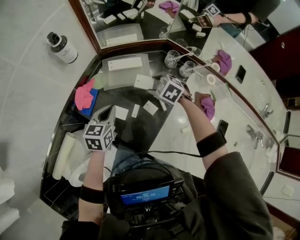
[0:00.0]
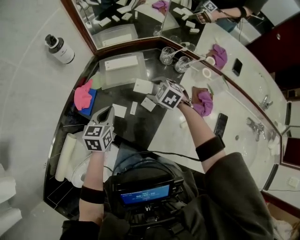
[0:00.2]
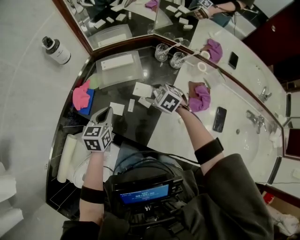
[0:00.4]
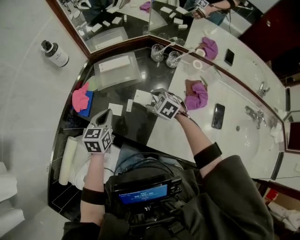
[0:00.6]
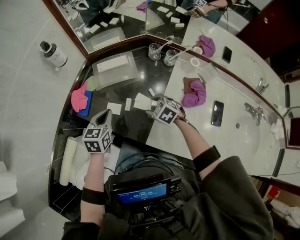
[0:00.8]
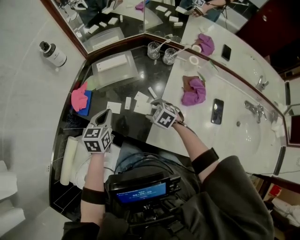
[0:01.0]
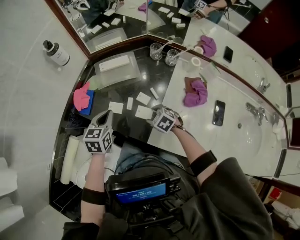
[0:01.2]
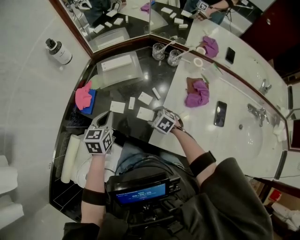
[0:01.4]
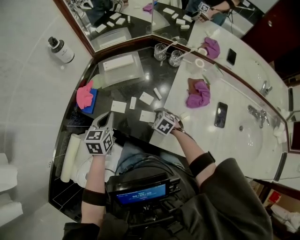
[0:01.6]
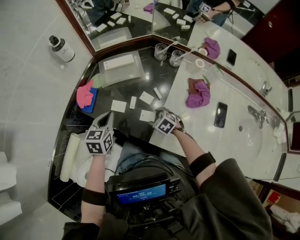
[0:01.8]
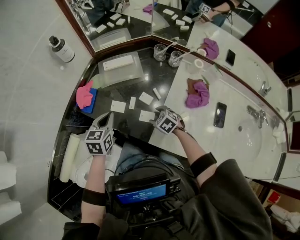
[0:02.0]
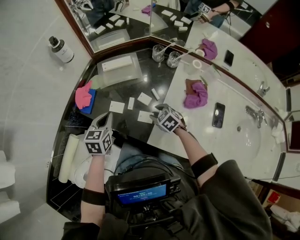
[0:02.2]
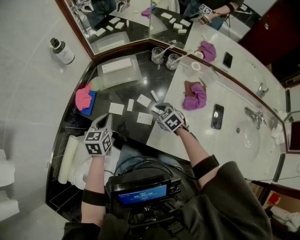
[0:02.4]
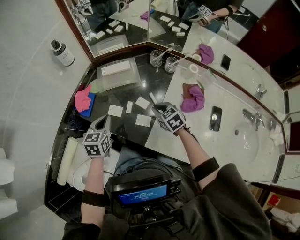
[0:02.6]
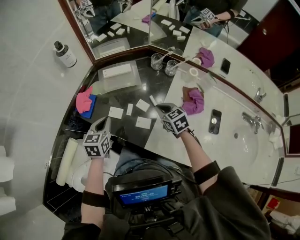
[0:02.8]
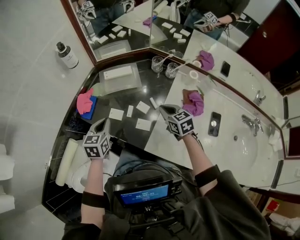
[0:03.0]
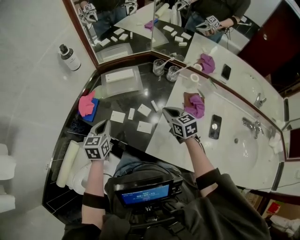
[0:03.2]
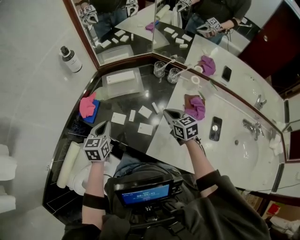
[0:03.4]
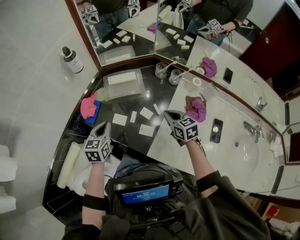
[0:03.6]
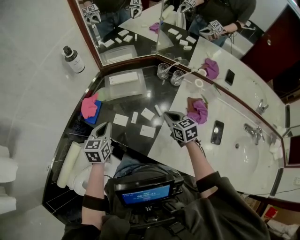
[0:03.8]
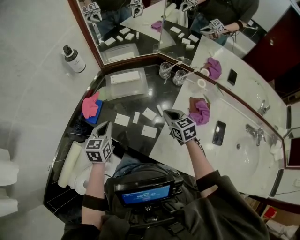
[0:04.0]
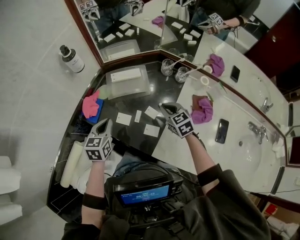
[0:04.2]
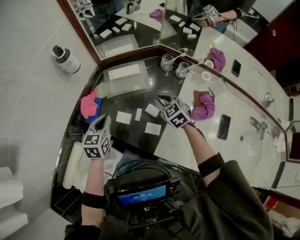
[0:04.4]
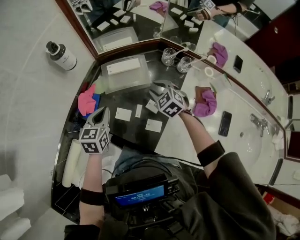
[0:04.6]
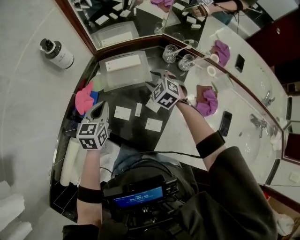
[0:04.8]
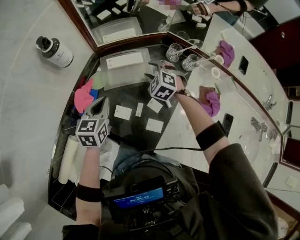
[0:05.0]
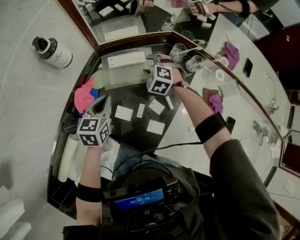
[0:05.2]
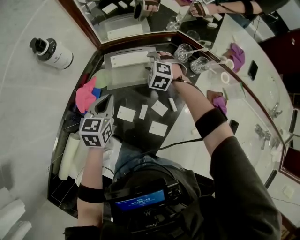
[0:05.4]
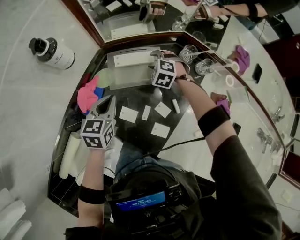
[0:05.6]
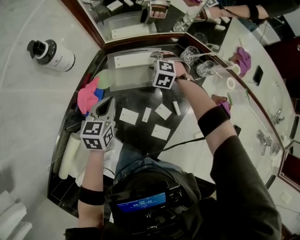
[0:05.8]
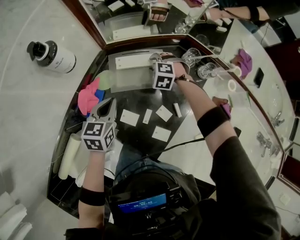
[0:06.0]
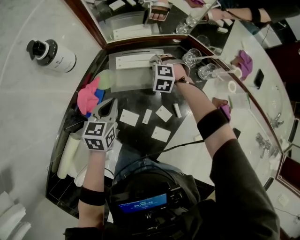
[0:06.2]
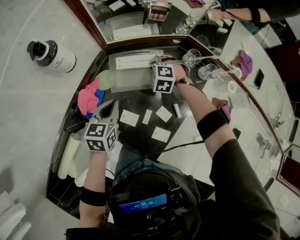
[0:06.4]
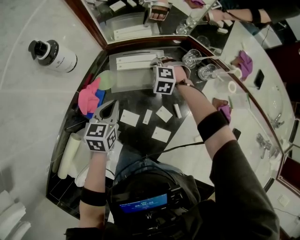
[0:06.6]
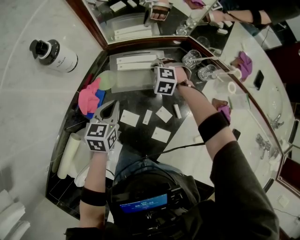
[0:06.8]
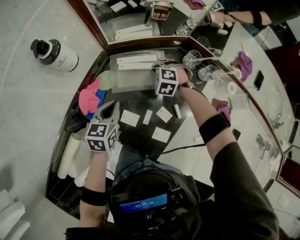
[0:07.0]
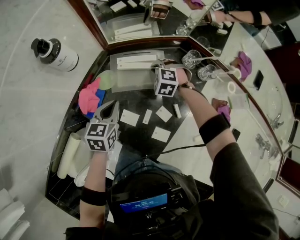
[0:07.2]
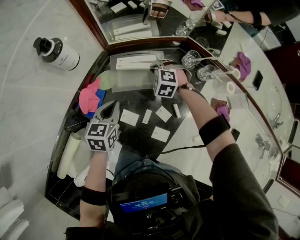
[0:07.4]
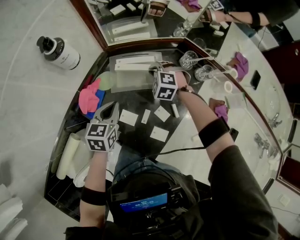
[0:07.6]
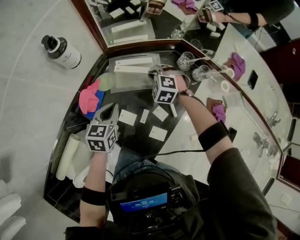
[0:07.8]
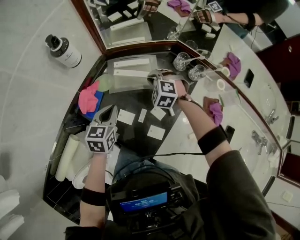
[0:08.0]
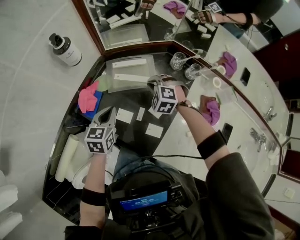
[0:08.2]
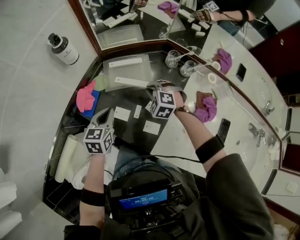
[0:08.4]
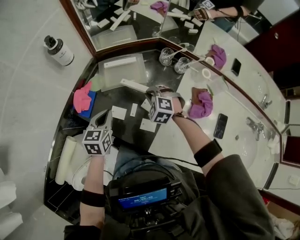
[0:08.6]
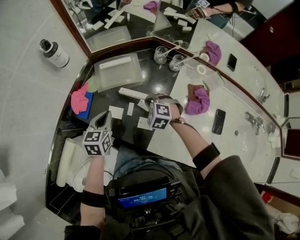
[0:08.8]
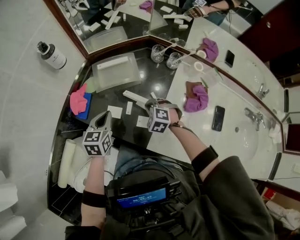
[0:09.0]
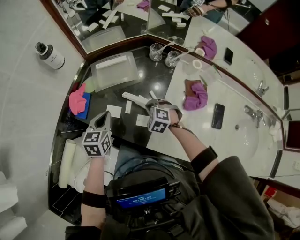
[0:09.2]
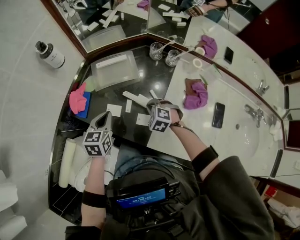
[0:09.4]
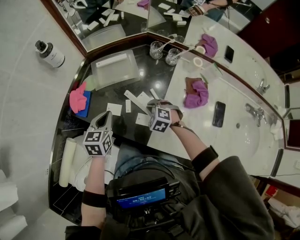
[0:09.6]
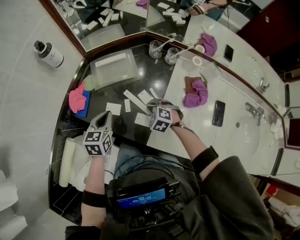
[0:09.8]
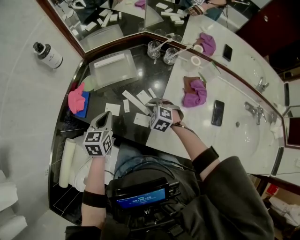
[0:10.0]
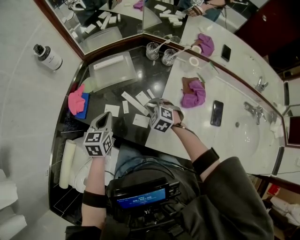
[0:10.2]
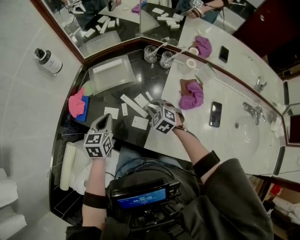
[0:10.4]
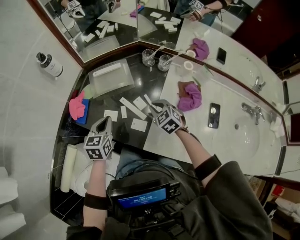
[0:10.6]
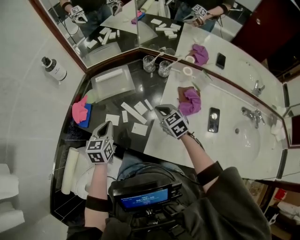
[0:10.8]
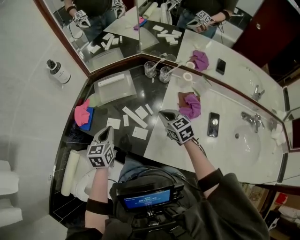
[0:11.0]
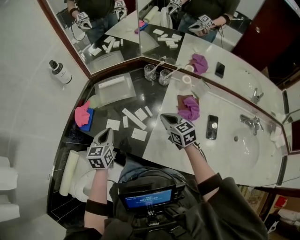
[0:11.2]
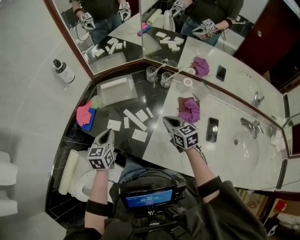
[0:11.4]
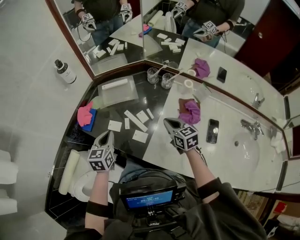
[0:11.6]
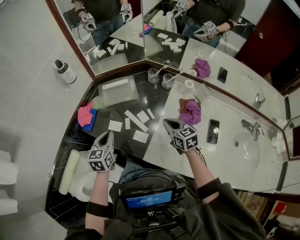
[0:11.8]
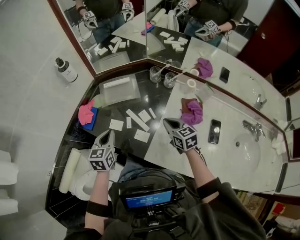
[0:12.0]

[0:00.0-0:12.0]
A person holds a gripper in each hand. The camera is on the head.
0:00.0 to 0:01.6: The left gripper shifts about 10 cm backward, while the right gripper is displaced backward and downward by about 25 cm.
0:01.6 to 0:03.0: The right gripper is displaced upward and to the right by approximately 20 cm, changes its angle by approximately 40 degrees, and closes its fingers.
0:03.0 to 0:04.4: The left gripper moves forward, approximately 5 cm. The right gripper shifts roughly 10 cm forward and to the left, and swivels about 20 degrees.
0:04.4 to 0:06.0: The right gripper is displaced forward and downward by roughly 25 cm, and twists some 40 degrees counterclockwise, seen from behind, while the left gripper shifts approximately 10 cm forward and downward.
0:06.0 to 0:07.6: The right gripper shifts by about 5 cm.
0:07.6 to 0:09.0: The left gripper moves backward, approximately 10 cm; the right gripper travels backward by some 25 cm.
0:09.0 to 0:10.4: The right gripper swivels approximately 20 degrees.
0:10.4 to 0:12.0: The right gripper travels upward and to the right by about 10 cm, and swivels some 40 degrees.

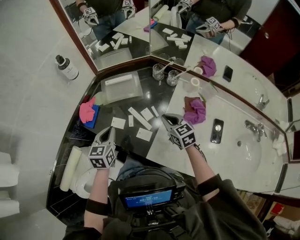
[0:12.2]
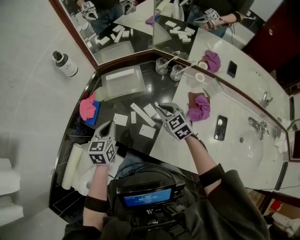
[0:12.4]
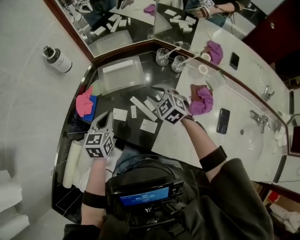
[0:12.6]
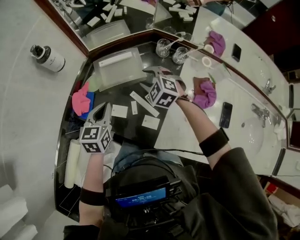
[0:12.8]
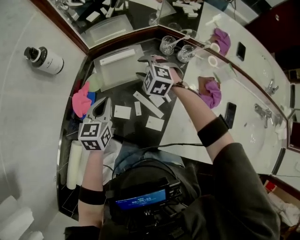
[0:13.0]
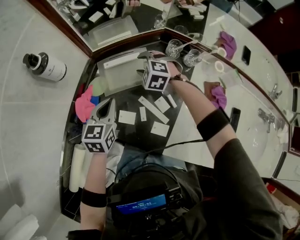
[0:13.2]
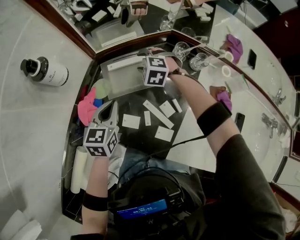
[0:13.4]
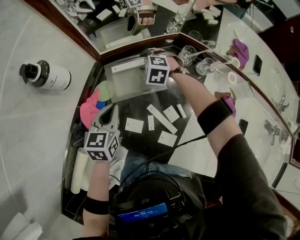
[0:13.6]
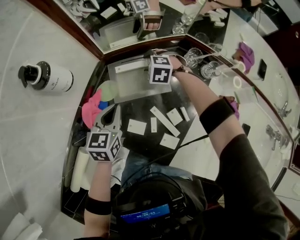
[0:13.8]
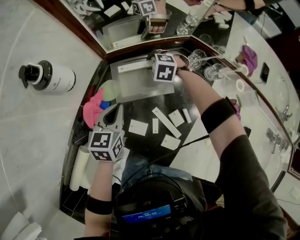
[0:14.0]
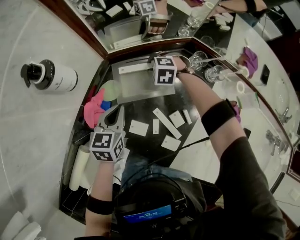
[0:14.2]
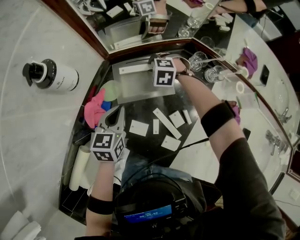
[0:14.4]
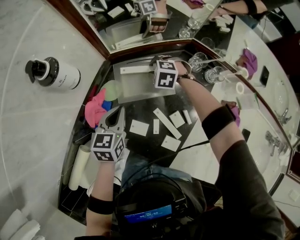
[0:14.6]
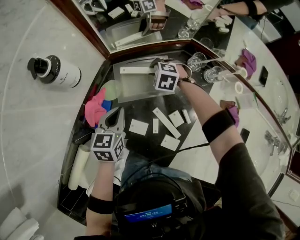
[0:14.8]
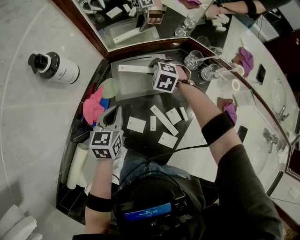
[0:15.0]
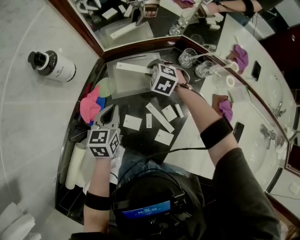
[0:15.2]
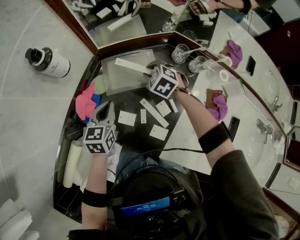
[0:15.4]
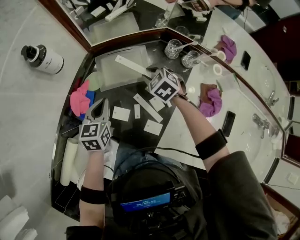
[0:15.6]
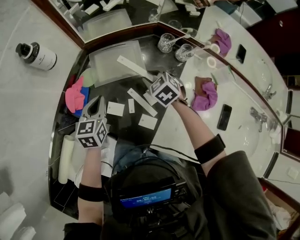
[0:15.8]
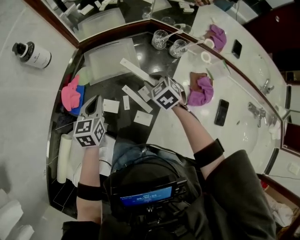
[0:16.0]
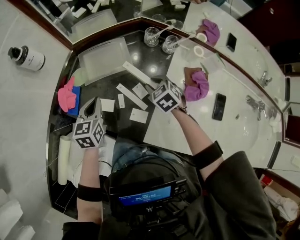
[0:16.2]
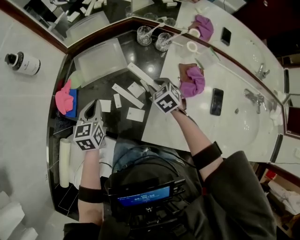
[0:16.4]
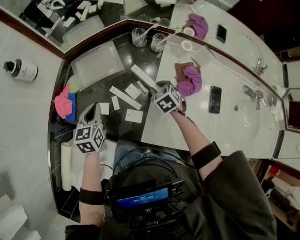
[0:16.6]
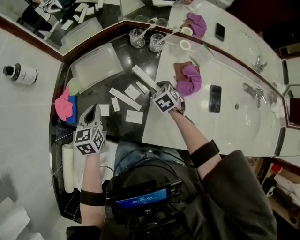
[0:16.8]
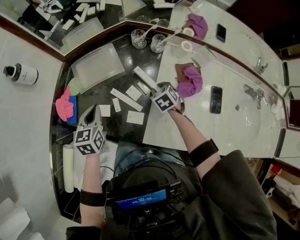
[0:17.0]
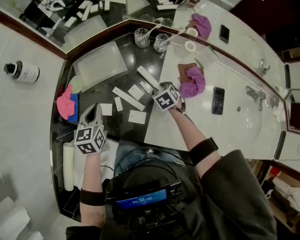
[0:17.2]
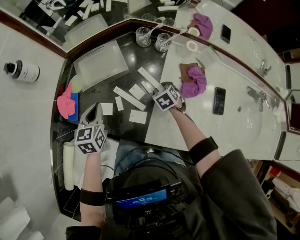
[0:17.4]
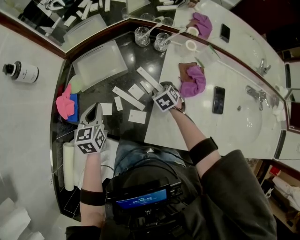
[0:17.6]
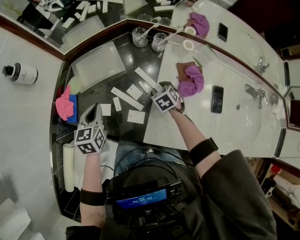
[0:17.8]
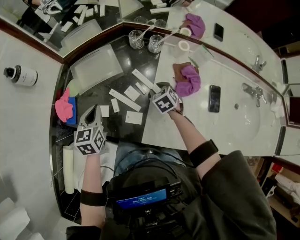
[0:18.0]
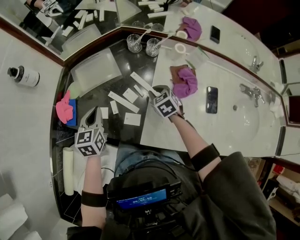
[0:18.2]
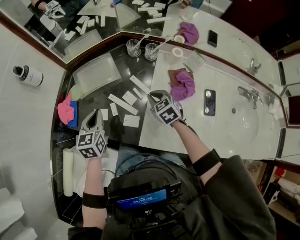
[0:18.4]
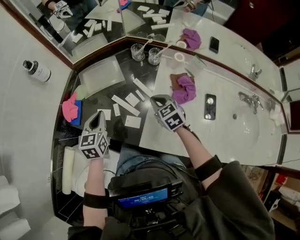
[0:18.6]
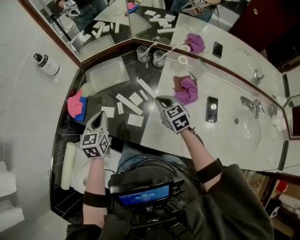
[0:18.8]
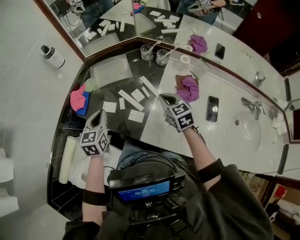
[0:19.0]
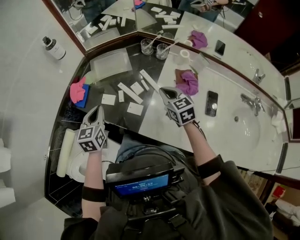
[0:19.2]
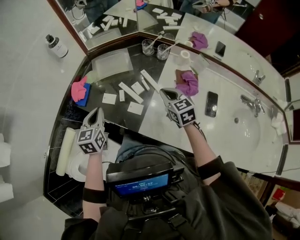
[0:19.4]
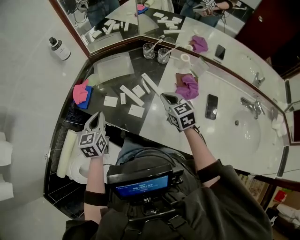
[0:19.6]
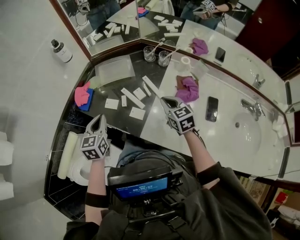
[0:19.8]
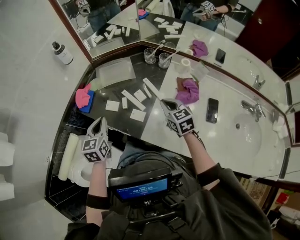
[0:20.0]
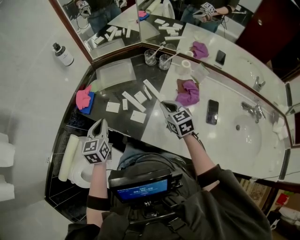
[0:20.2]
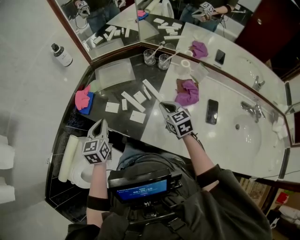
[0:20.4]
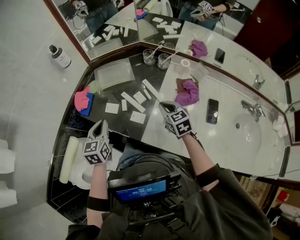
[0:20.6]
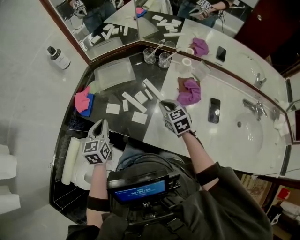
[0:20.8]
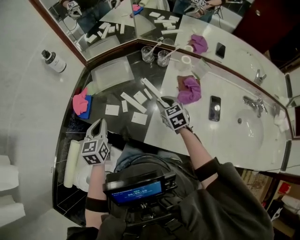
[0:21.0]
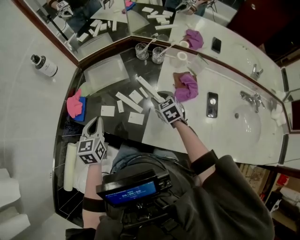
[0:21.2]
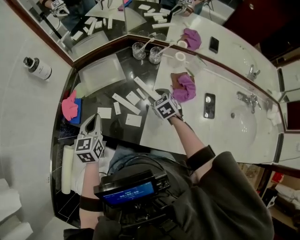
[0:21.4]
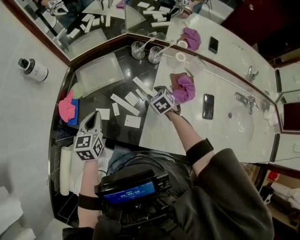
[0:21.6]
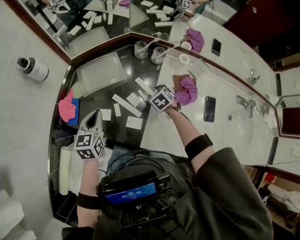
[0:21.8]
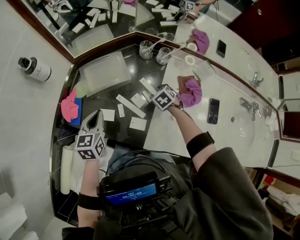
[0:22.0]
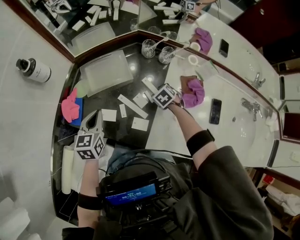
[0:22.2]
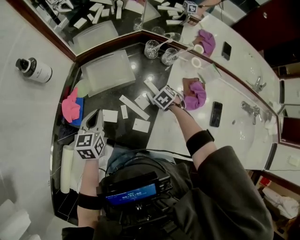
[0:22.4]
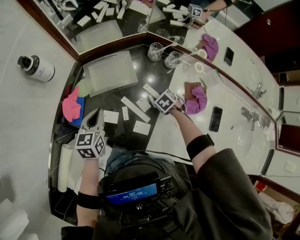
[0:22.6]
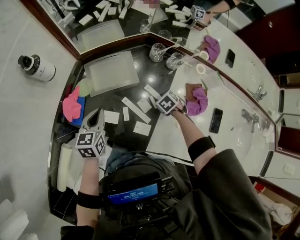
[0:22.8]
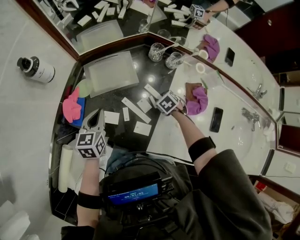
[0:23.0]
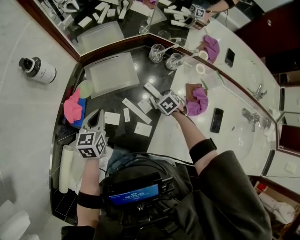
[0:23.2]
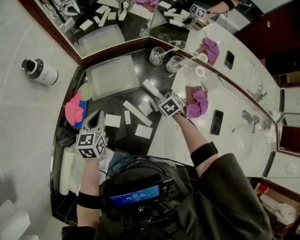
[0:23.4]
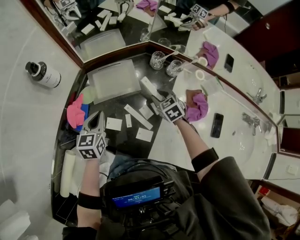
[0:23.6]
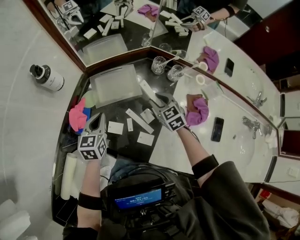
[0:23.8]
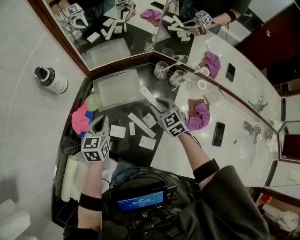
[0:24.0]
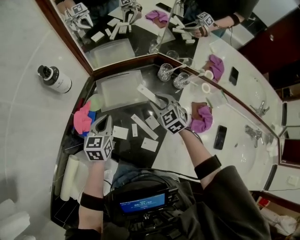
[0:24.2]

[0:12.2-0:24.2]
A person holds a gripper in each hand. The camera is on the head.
0:12.2 to 0:13.8: The left gripper heads forward, covering some 20 cm; the right gripper heads forward, to the left and downward, covering roughly 40 cm, twists approximately 50 degrees counterclockwise, seen from behind, and opens up.
0:13.8 to 0:15.2: The right gripper moves backward, some 5 cm.
0:15.2 to 0:16.6: The right gripper heads backward and to the right, covering about 30 cm, and rolls clockwise, seen from behind, by some 40 degrees. Meanwhile the left gripper travels backward and to the right by some 10 cm.
0:16.6 to 0:18.2: The right gripper goes downward and returns, some 5 cm each way.
0:18.2 to 0:19.8: The right gripper moves upward and backward, some 15 cm, and turns by roughly 20 degrees. Meanwhile the left gripper moves backward and upward, approximately 15 cm.
0:19.8 to 0:21.2: The right gripper goes approximately 10 cm downward and forward, and opens its fingers. The left gripper moves forward, approximately 5 cm.
0:21.2 to 0:22.6: The left gripper changes place by about 10 cm; the right gripper is displaced downward by roughly 15 cm, and tilts its fingers approximately 30 degrees downward.
0:22.6 to 0:24.2: The right gripper shifts approximately 20 cm upward, and points its fingers about 40 degrees further upward.
